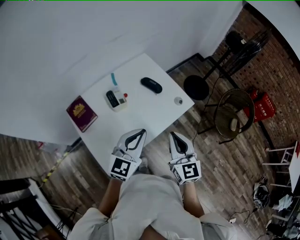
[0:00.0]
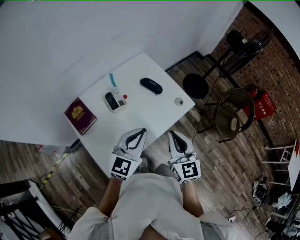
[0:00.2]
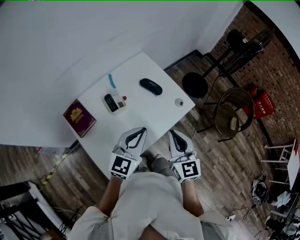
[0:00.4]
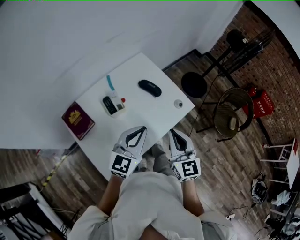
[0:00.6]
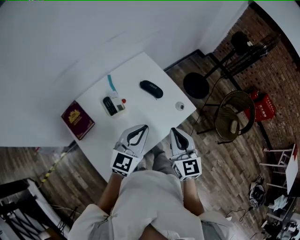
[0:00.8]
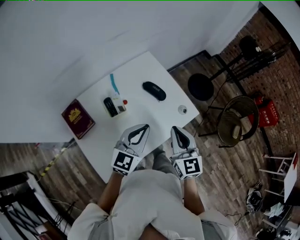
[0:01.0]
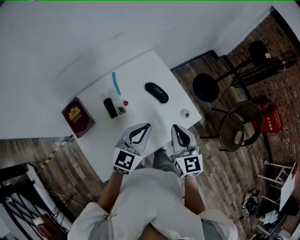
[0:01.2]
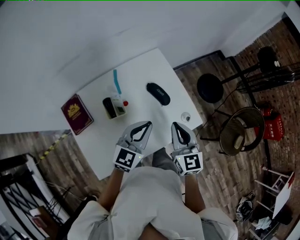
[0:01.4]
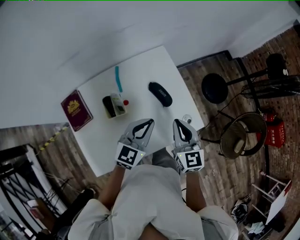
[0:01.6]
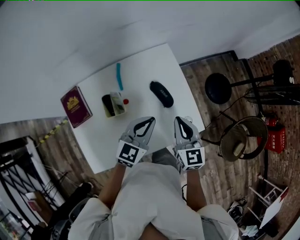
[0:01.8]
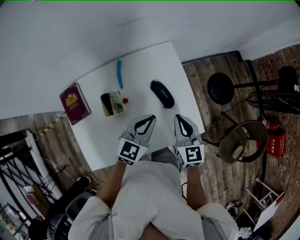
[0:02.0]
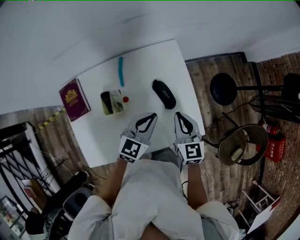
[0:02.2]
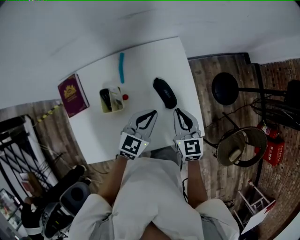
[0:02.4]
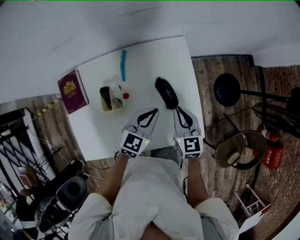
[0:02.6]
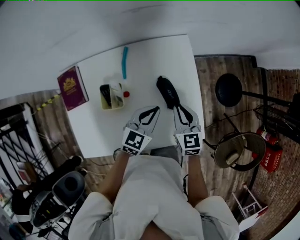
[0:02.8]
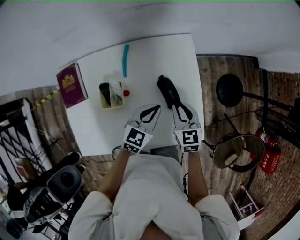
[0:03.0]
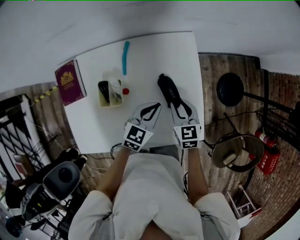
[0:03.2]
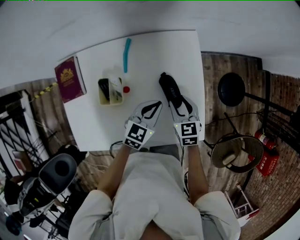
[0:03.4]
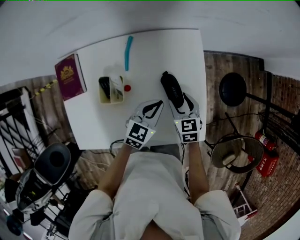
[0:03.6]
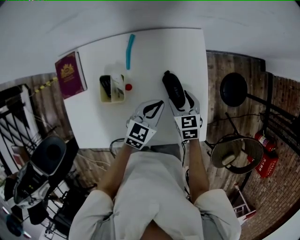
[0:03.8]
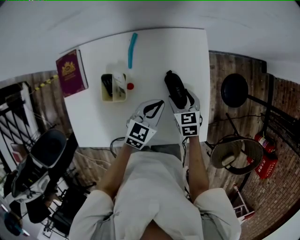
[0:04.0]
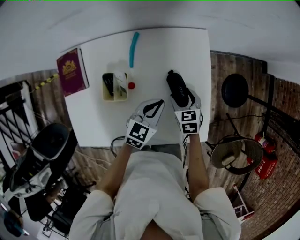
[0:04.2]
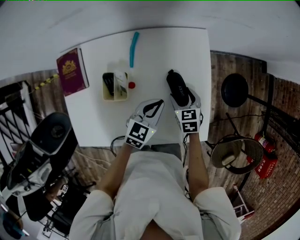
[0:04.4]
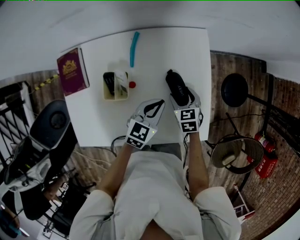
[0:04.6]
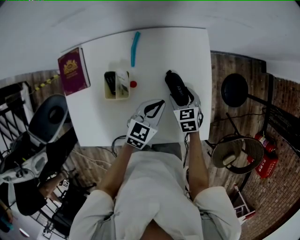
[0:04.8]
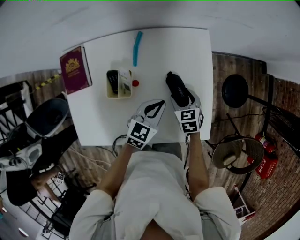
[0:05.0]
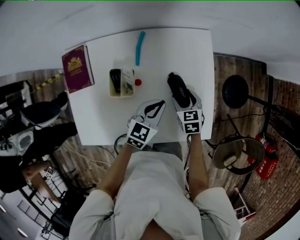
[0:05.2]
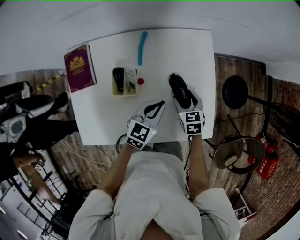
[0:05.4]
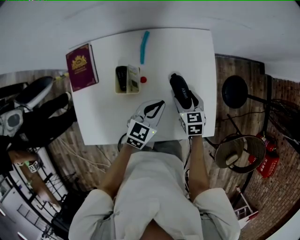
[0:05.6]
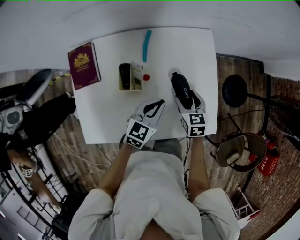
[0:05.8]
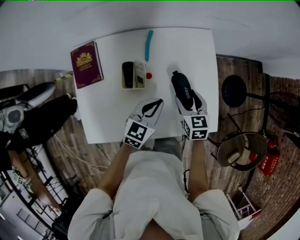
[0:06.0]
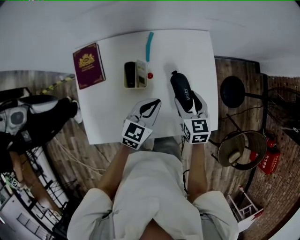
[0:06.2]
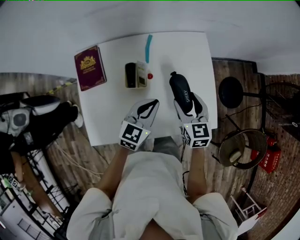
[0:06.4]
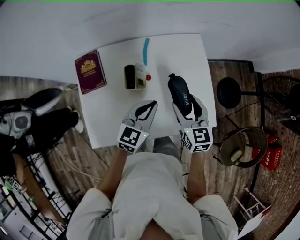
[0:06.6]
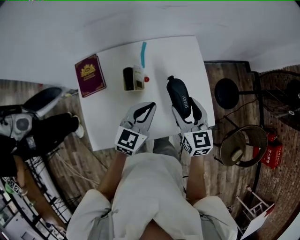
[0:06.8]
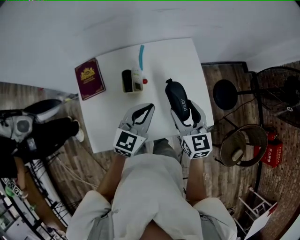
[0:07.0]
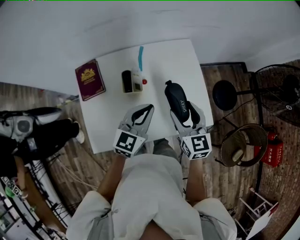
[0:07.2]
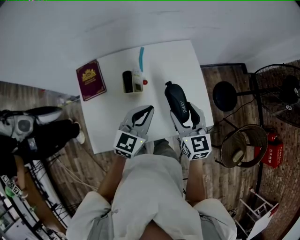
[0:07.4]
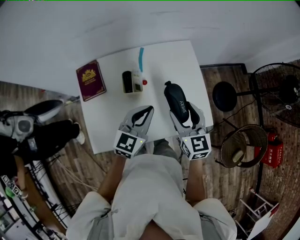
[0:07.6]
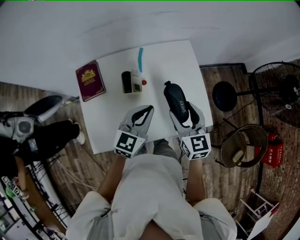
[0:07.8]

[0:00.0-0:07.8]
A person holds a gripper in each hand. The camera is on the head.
0.0 to 1.6 s: The grippers both shift forward by some 20 cm.
1.6 to 3.2 s: Both grippers travel together downward and forward, approximately 15 cm. The left gripper changes its angle by approximately 20 degrees; the right gripper turns by about 30 degrees, and opens its fingers.
3.2 to 4.6 s: The right gripper is displaced downward by roughly 5 cm, and opens up.
4.6 to 6.2 s: The right gripper shifts roughly 15 cm upward and backward. Meanwhile the left gripper heads to the left, backward and upward, covering some 10 cm.
6.2 to 7.8 s: The left gripper heads upward, covering approximately 10 cm. Meanwhile the right gripper goes about 15 cm upward and backward.

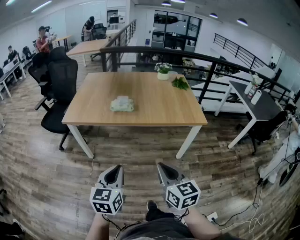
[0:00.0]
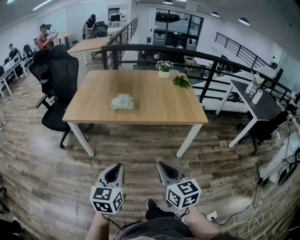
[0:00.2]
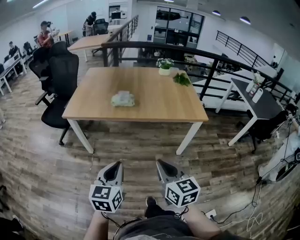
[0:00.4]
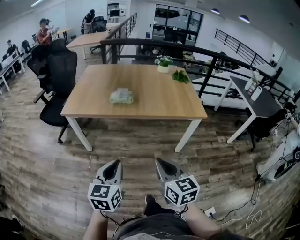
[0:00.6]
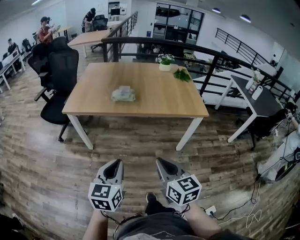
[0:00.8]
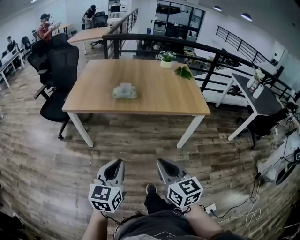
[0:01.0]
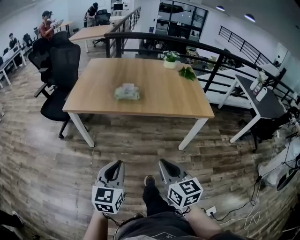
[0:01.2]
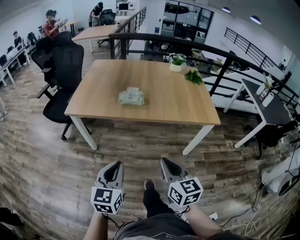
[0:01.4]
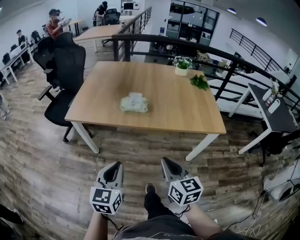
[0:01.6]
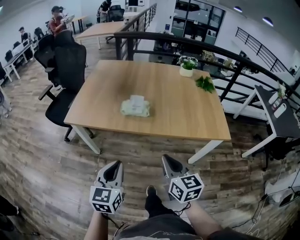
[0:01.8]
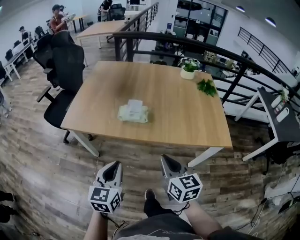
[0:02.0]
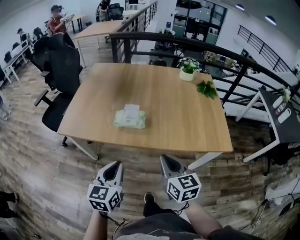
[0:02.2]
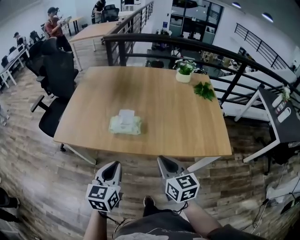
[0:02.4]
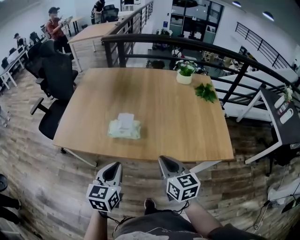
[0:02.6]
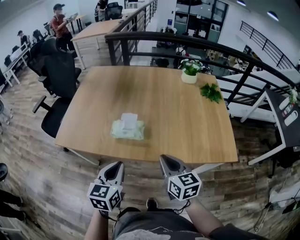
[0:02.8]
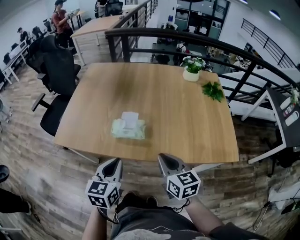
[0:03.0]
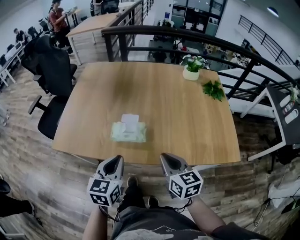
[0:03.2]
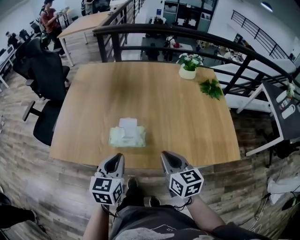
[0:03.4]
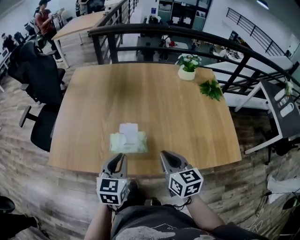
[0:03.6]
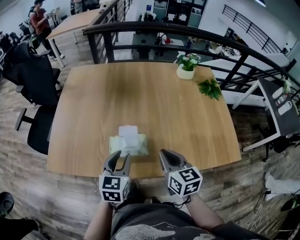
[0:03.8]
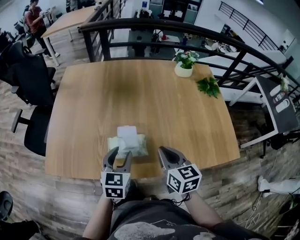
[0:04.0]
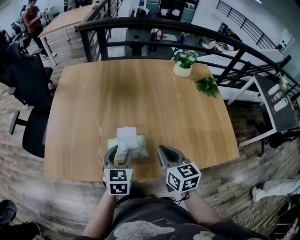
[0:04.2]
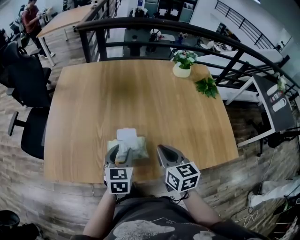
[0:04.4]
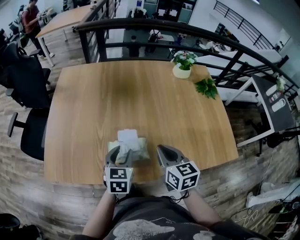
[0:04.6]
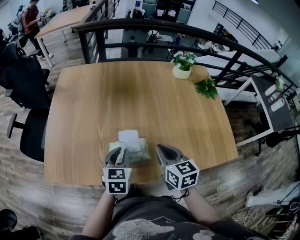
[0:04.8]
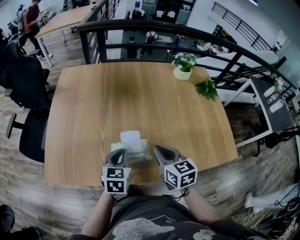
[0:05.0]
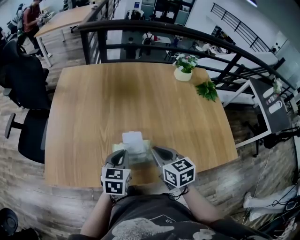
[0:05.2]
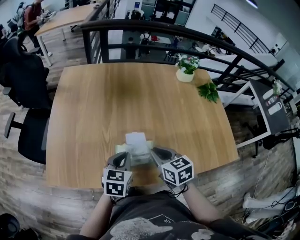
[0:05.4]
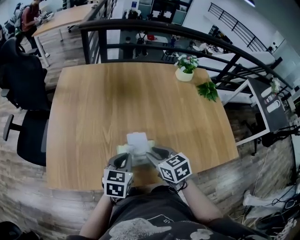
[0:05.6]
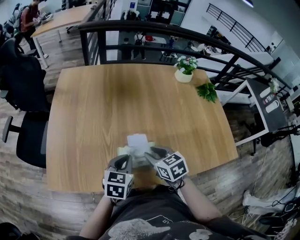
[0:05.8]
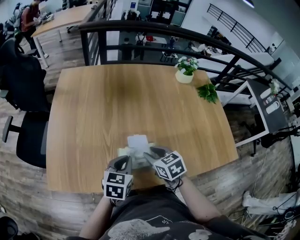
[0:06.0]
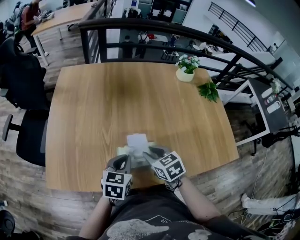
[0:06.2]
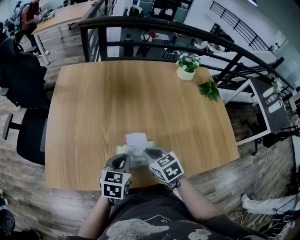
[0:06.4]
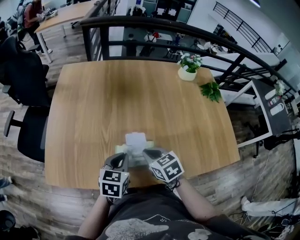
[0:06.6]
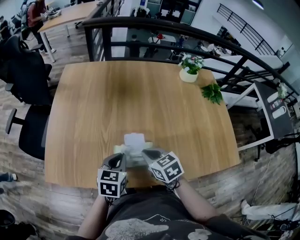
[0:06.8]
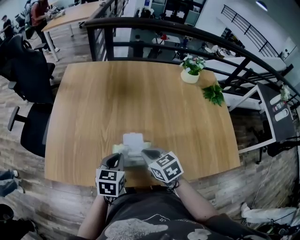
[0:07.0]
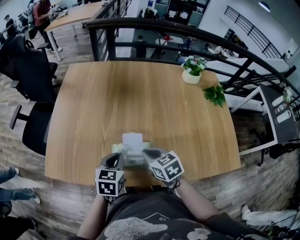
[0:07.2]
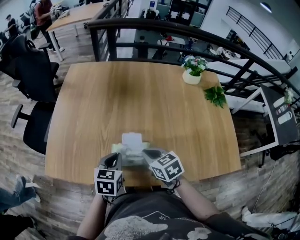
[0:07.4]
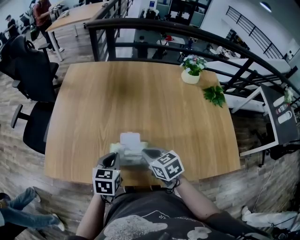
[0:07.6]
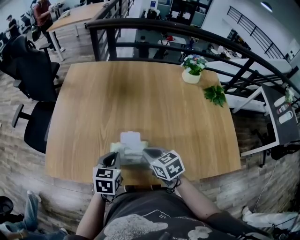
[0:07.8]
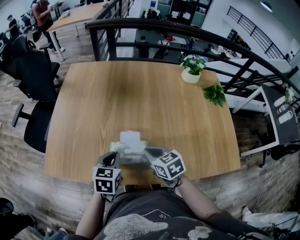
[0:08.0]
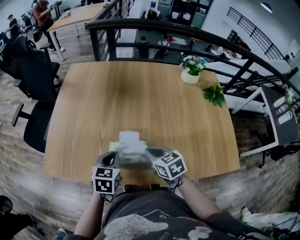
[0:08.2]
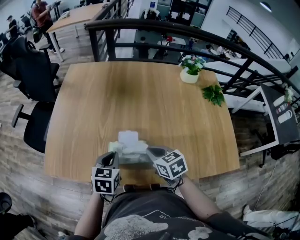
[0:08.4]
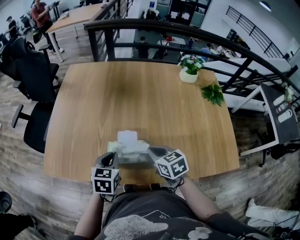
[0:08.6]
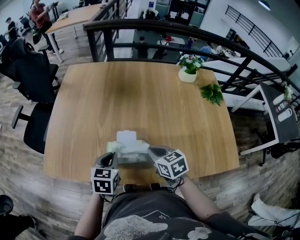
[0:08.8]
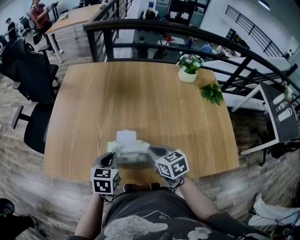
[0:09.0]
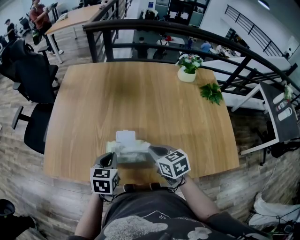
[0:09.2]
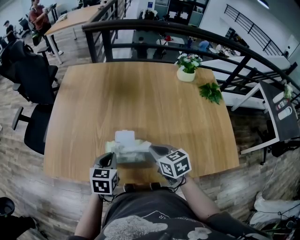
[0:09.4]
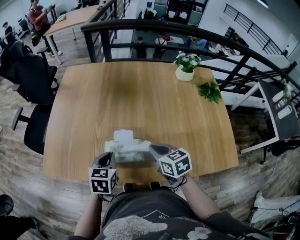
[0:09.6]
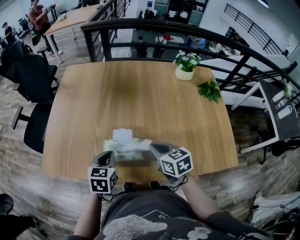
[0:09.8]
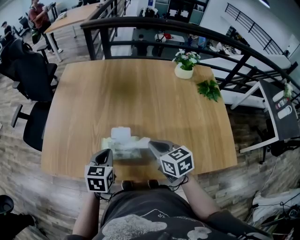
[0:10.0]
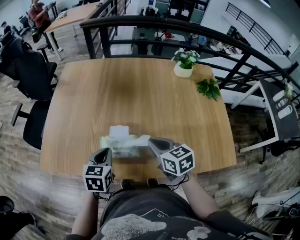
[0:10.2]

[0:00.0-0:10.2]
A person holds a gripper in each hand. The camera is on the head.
0.0 to 1.4 s: Both grippers move forward, some 5 cm.
1.4 to 3.0 s: Both grippers move forward, approximately 35 cm.
3.0 to 4.4 s: Both grippers move forward, roughly 20 cm. The left gripper opens.
4.4 to 5.8 s: The left gripper closes. Meanwhile the right gripper goes some 10 cm to the left and downward, rotates about 20 degrees, and opens its fingers.
5.8 to 7.2 s: The right gripper closes up.
7.2 to 8.8 s: The right gripper is displaced to the right by approximately 5 cm.
8.8 to 10.2 s: The right gripper moves roughly 5 cm.

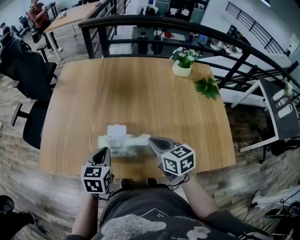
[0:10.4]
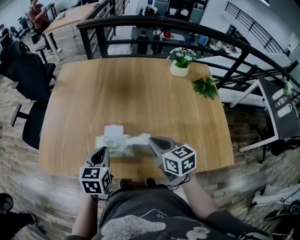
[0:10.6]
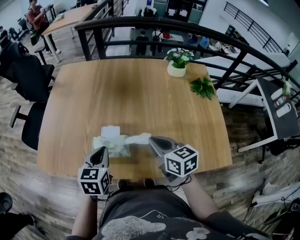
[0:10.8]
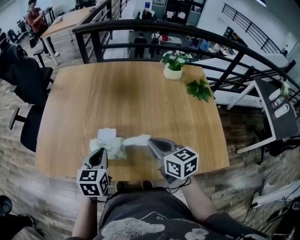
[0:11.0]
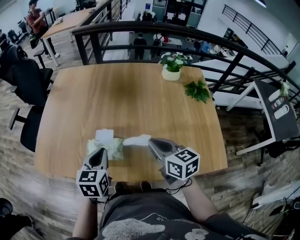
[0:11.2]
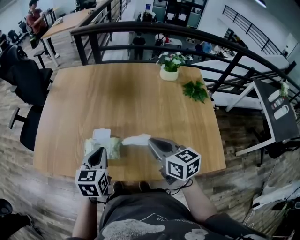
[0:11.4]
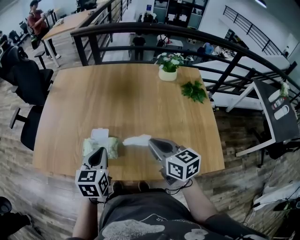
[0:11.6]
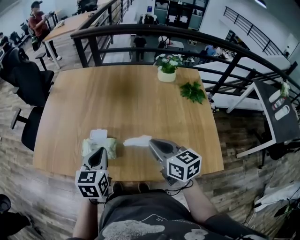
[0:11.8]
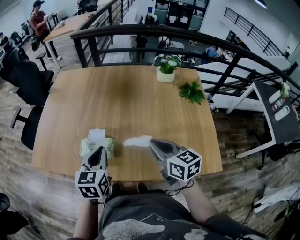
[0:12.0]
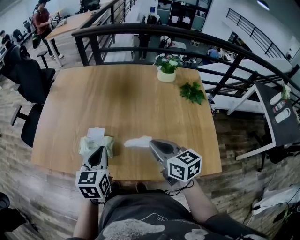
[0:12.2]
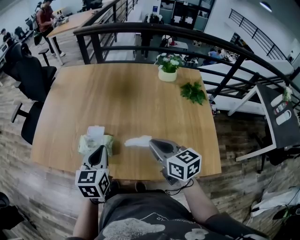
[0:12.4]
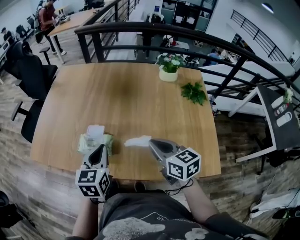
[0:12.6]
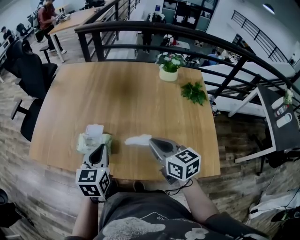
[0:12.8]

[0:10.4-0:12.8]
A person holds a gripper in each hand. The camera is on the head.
10.4 to 11.6 s: The left gripper goes roughly 10 cm to the right. Meanwhile the right gripper shifts some 10 cm to the right and upward.
11.6 to 12.8 s: There are only small adjustments of the grippers.

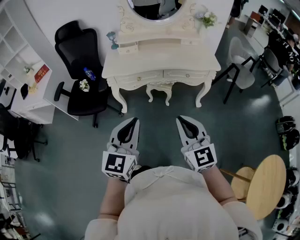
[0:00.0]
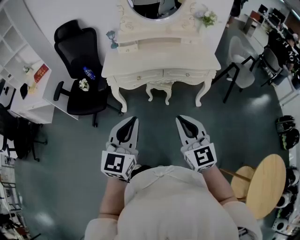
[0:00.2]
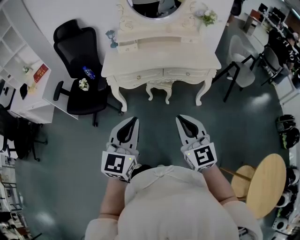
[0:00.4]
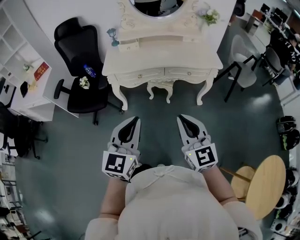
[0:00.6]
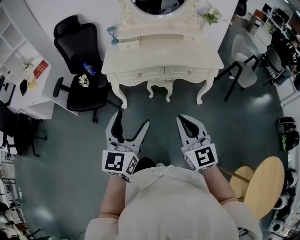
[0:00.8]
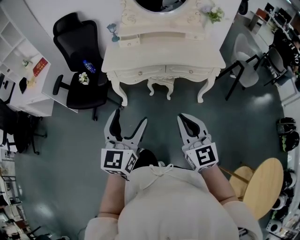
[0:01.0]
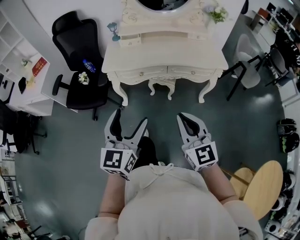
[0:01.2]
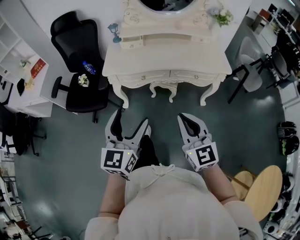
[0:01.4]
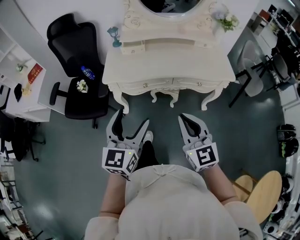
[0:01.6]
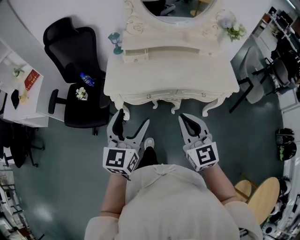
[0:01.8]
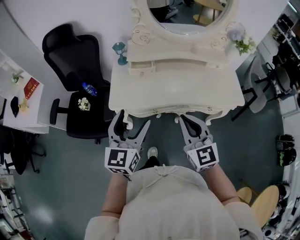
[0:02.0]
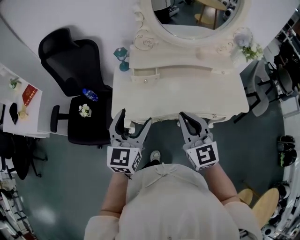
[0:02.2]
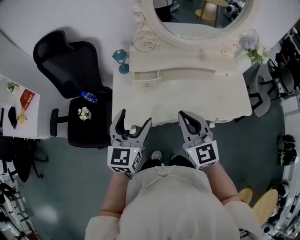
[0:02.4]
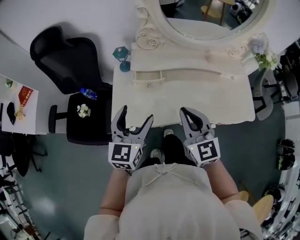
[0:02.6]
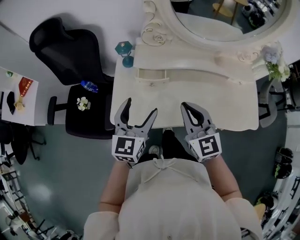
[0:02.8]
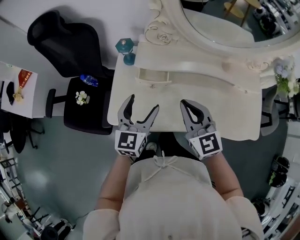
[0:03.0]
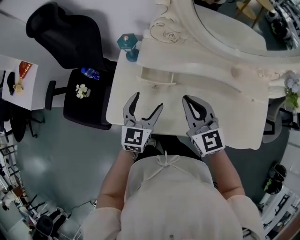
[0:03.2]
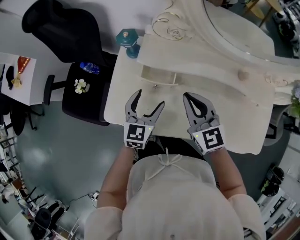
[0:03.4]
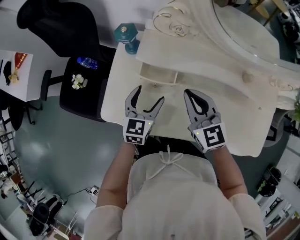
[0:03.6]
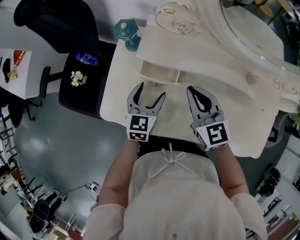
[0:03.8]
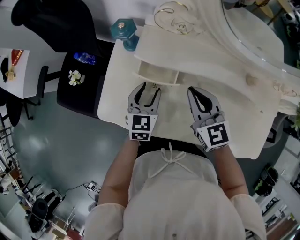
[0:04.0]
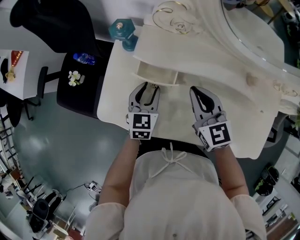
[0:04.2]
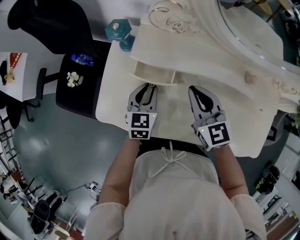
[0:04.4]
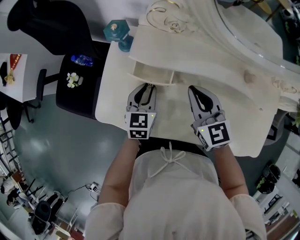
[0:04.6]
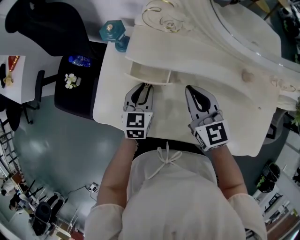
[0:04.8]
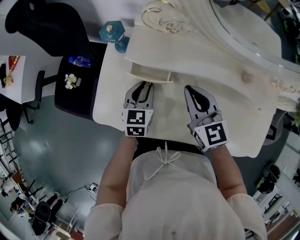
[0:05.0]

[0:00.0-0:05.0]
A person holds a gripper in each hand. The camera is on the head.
0.0 to 1.6 s: The grippers both shift forward by some 20 cm. The left gripper opens.
1.6 to 3.4 s: Both grippers are carried forward, about 50 cm. The left gripper goes roughly 20 cm downward, and turns by some 20 degrees. Meanwhile the right gripper rotates roughly 20 degrees.
3.4 to 5.0 s: The right gripper changes place by some 5 cm. Meanwhile the left gripper moves downward, some 5 cm, and closes up.
